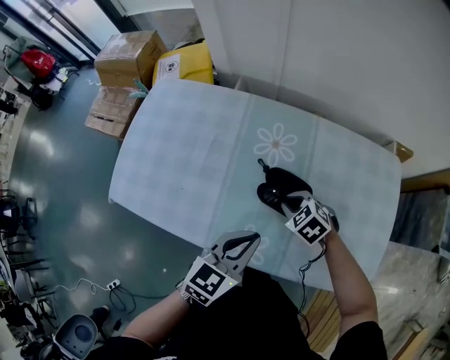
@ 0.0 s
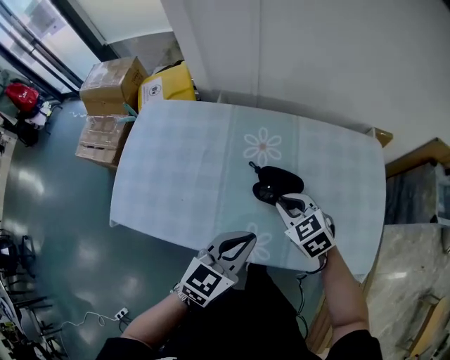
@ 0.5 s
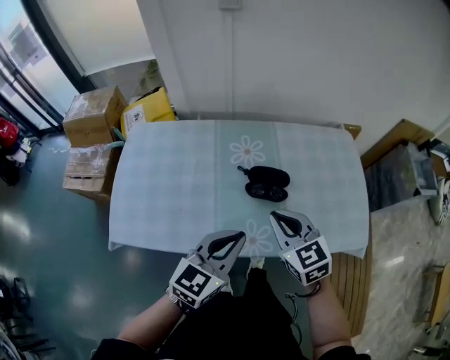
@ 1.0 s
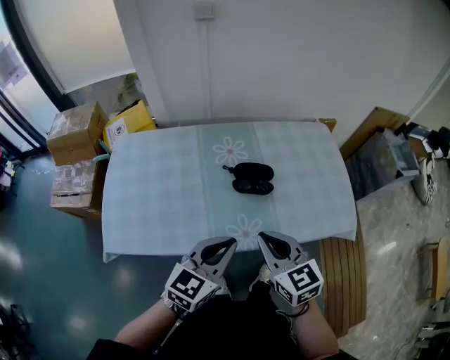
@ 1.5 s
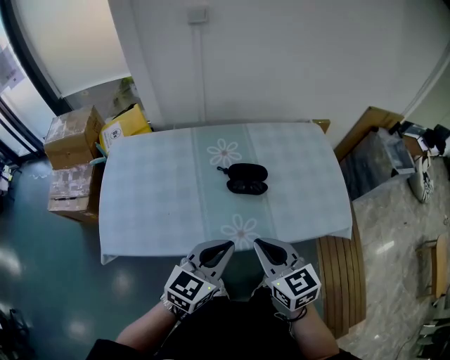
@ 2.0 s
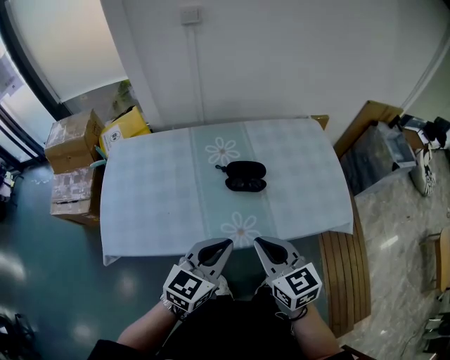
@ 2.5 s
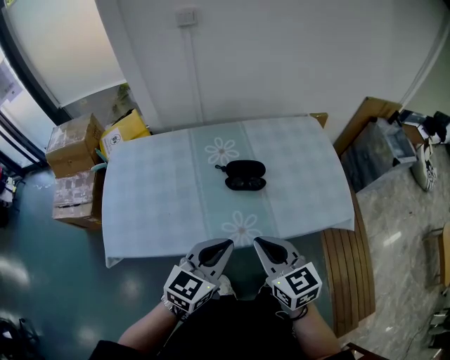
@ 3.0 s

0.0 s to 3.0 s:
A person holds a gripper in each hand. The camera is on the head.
0.0 to 1.5 s: The left gripper ends up some 15 cm from where it was, and turns by approximately 20 degrees, while the right gripper heads upward, covering approximately 20 cm, and tips its fingers upward by some 40 degrees.
1.5 to 3.0 s: There are only small adjustments of the grippers.

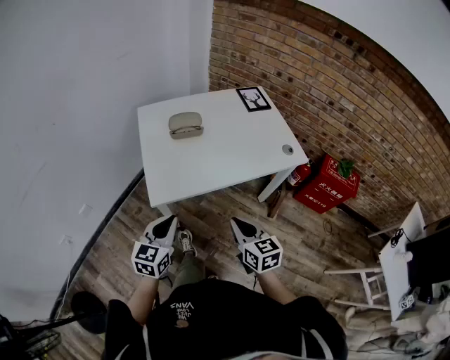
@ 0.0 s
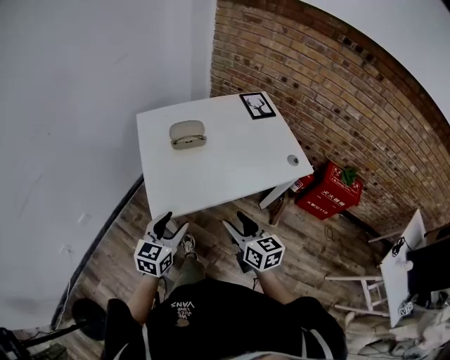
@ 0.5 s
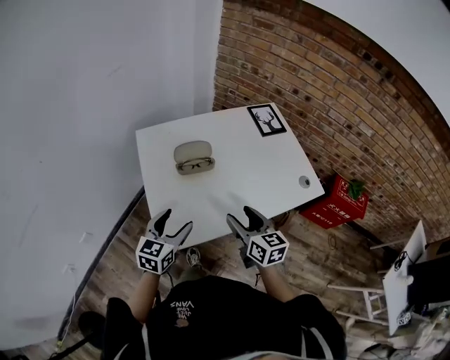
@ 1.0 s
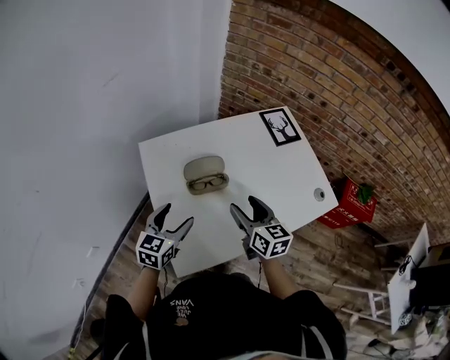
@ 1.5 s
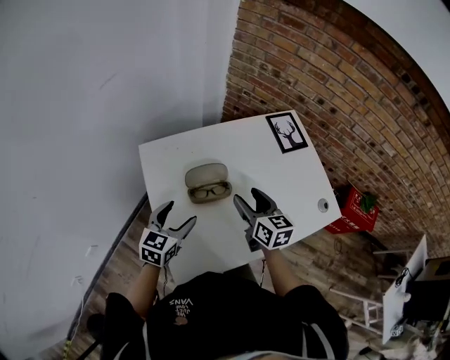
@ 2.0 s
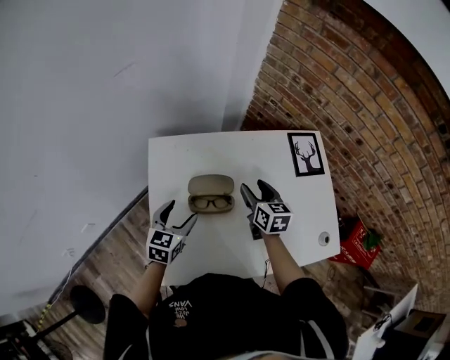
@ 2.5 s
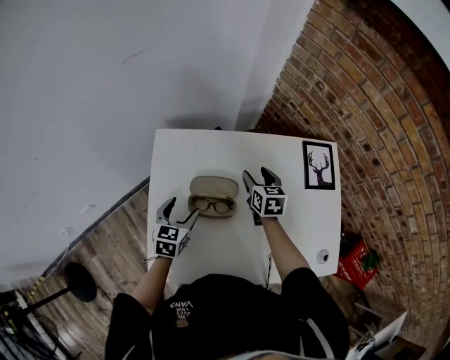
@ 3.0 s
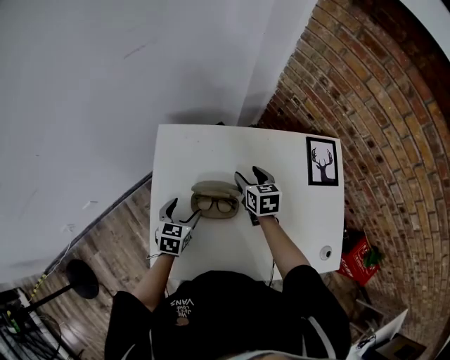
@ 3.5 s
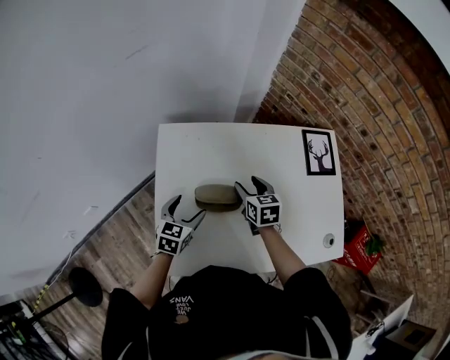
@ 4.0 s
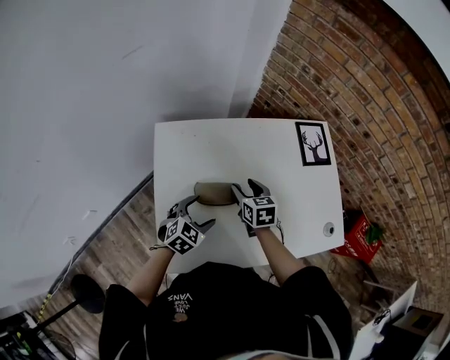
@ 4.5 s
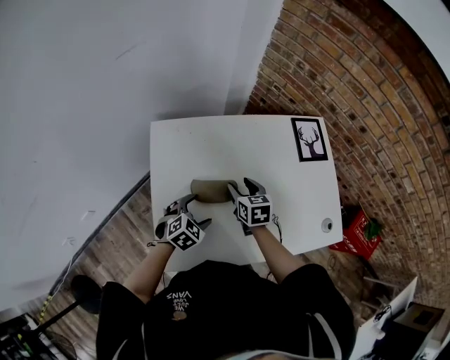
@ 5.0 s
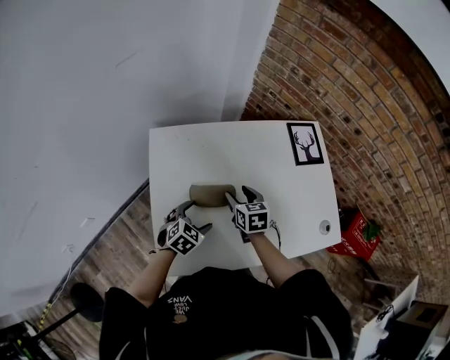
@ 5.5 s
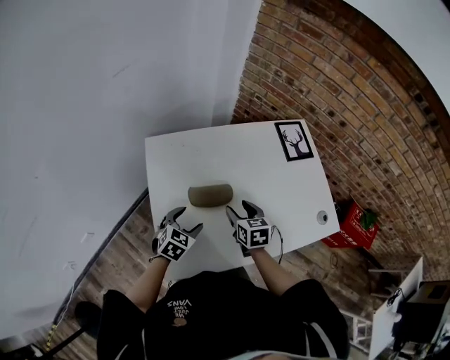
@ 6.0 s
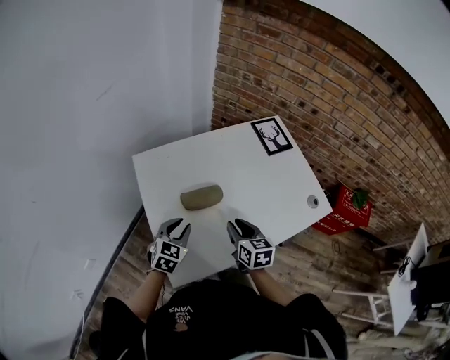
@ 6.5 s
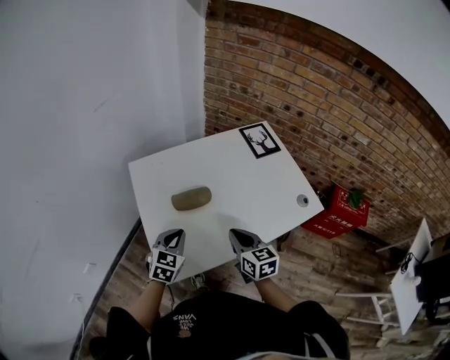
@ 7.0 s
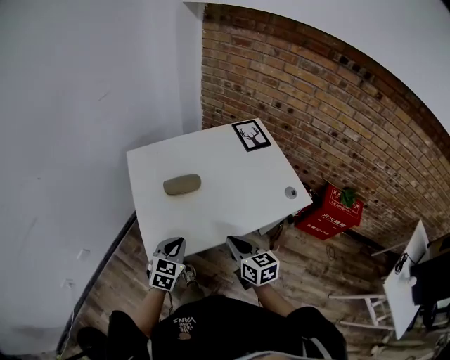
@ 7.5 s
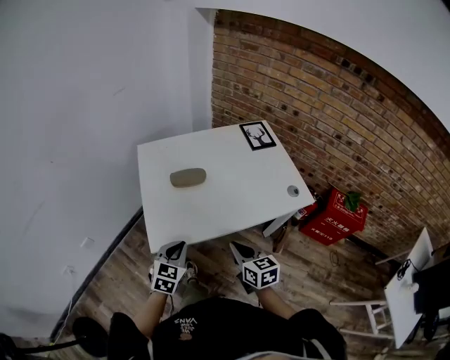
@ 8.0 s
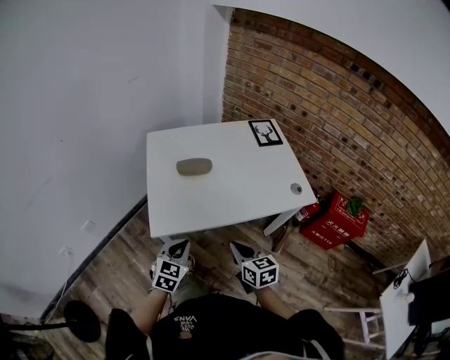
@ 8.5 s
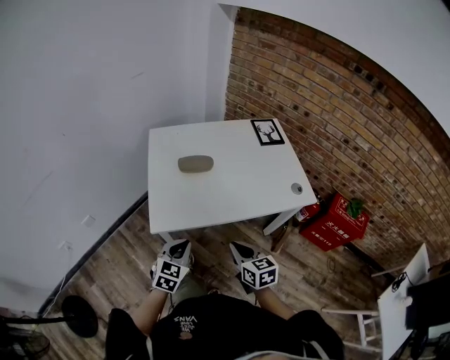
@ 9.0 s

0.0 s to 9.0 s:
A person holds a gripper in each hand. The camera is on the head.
0.0 to 2.0 s: The grippers both shift forward by about 40 cm. The right gripper opens its fingers; the left gripper opens up.
2.0 to 4.5 s: The left gripper travels downward and to the right by some 10 cm, and rotates some 20 degrees; the right gripper shifts roughly 15 cm downward and forward, and rotates some 20 degrees.
4.5 to 7.0 s: The left gripper heads backward and upward, covering about 10 cm, and closes, while the right gripper moves backward and upward, some 25 cm, rotates about 20 degrees, and closes.
7.0 to 9.0 s: Both grippers travel together backward, about 20 cm.

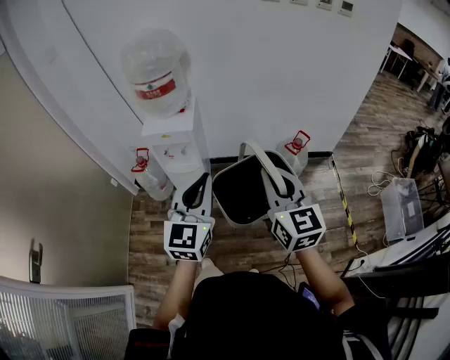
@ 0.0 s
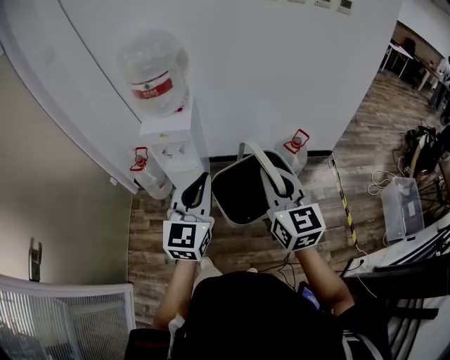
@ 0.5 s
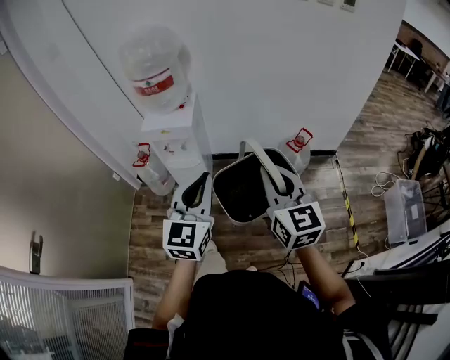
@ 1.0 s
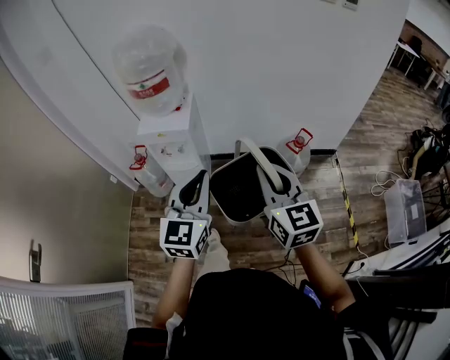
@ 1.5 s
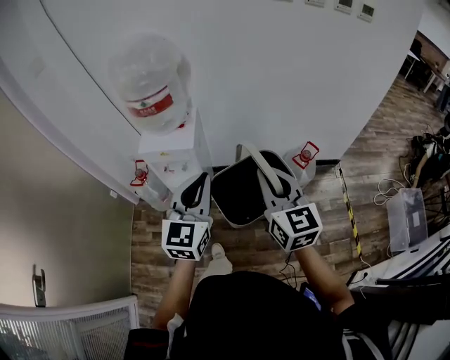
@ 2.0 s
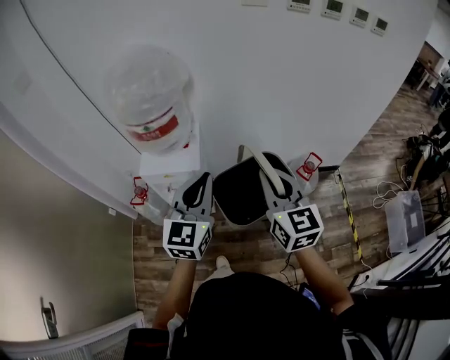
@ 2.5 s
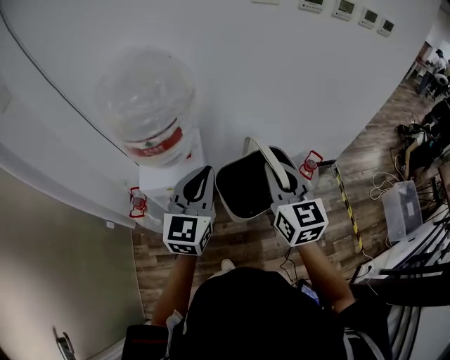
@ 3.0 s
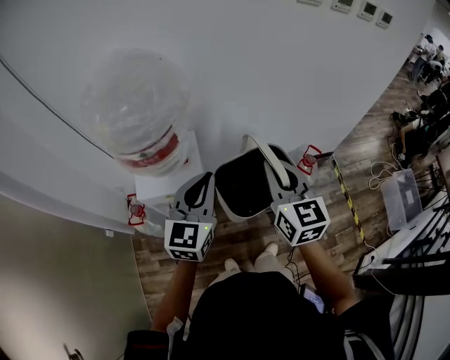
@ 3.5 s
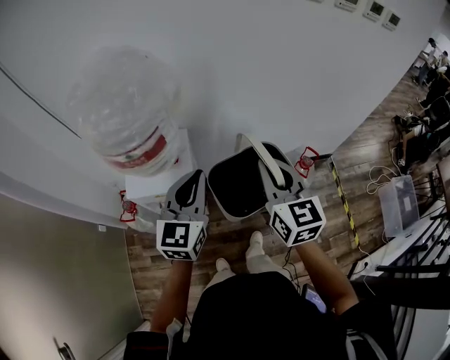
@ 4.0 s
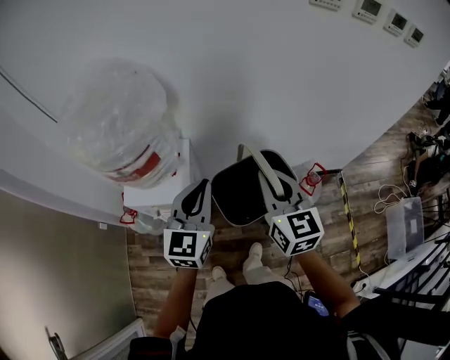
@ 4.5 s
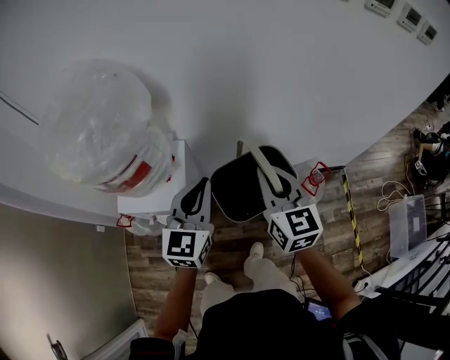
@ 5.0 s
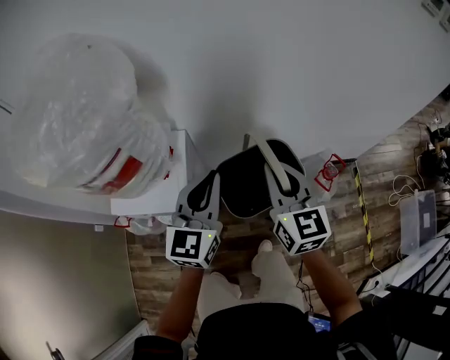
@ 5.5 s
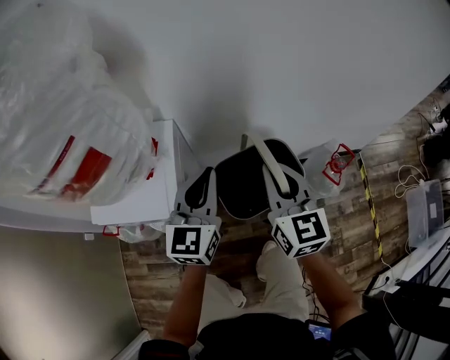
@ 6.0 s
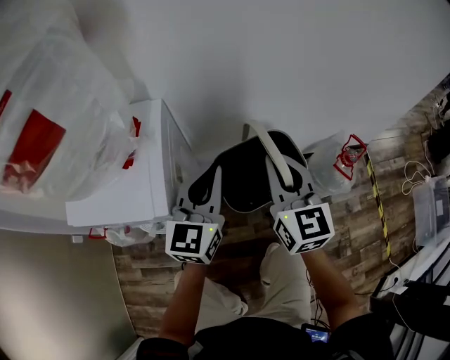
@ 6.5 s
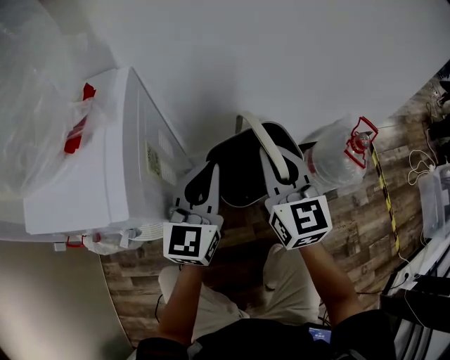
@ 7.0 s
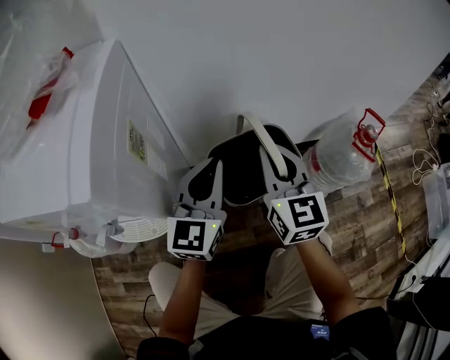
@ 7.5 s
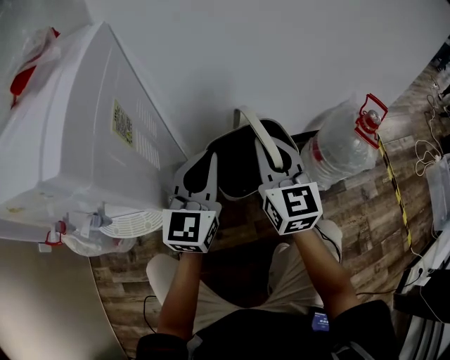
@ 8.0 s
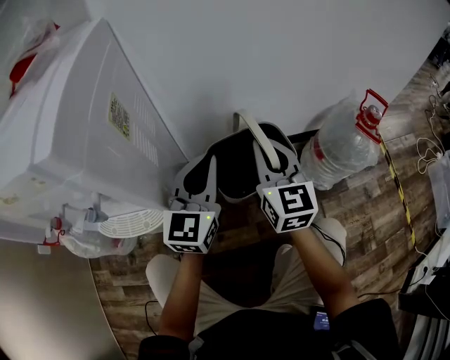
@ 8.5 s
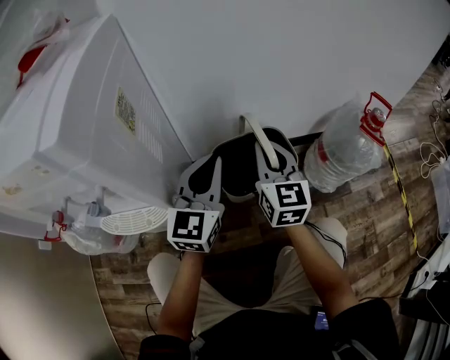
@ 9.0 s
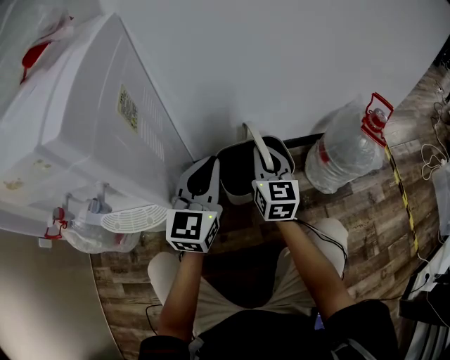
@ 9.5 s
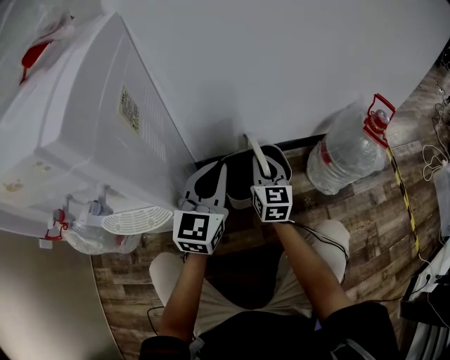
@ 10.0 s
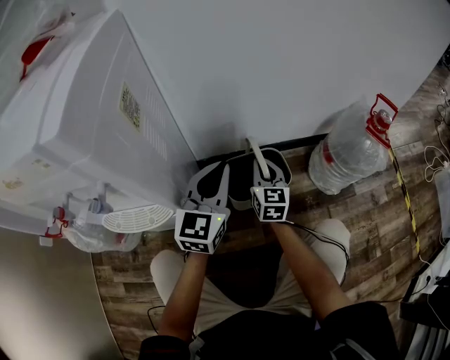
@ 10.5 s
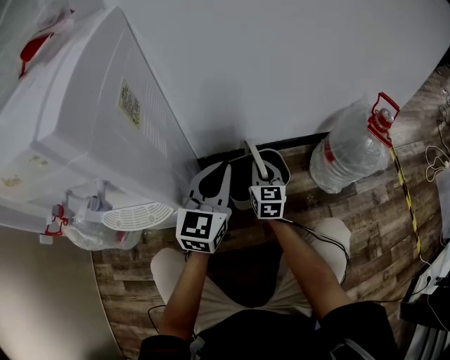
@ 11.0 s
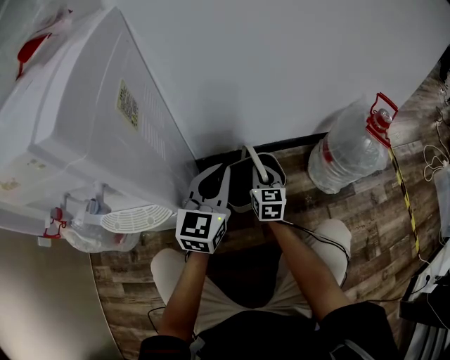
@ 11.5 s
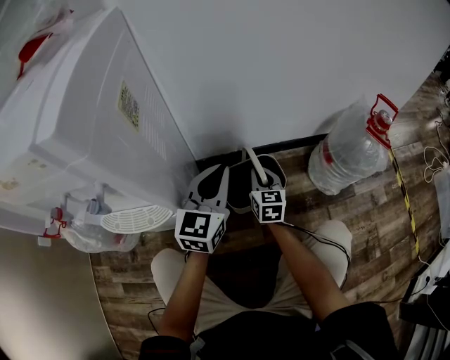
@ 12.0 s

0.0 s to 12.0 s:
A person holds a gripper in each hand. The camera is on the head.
0.0 to 2.0 s: The grippers both shift forward by approximately 15 cm.
2.0 to 4.0 s: The grippers both shift forward by about 20 cm.
4.0 to 6.0 s: Both grippers move downward and forward, approximately 25 cm.
6.0 to 8.0 s: The two grippers go roughly 30 cm downward.
8.0 to 10.0 s: The left gripper heads downward, covering roughly 5 cm, while the right gripper moves downward, about 20 cm.
10.0 to 12.0 s: The right gripper shifts some 10 cm downward.

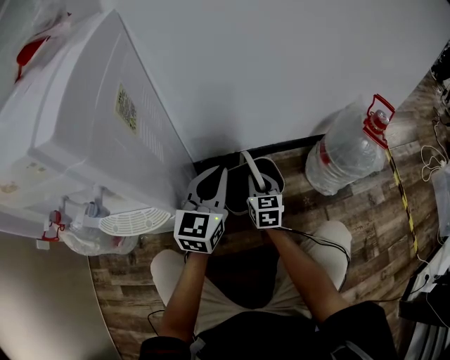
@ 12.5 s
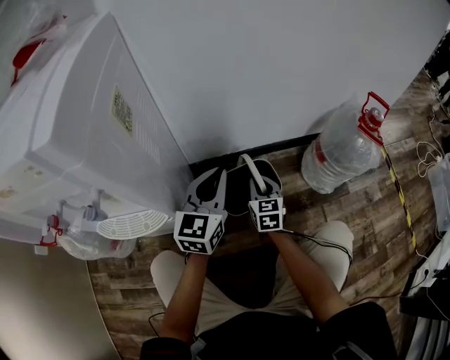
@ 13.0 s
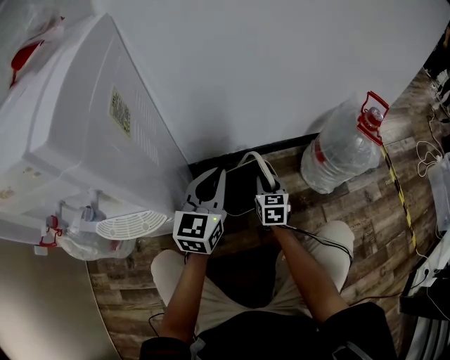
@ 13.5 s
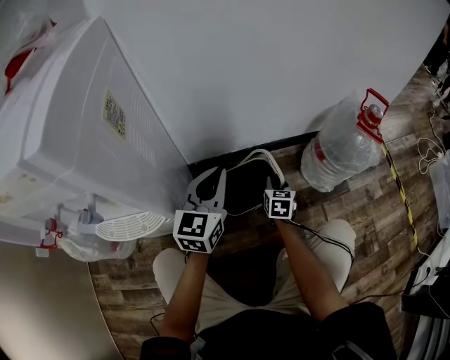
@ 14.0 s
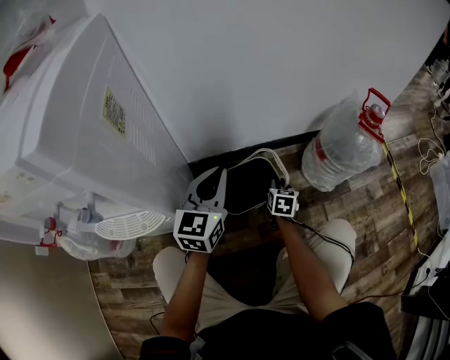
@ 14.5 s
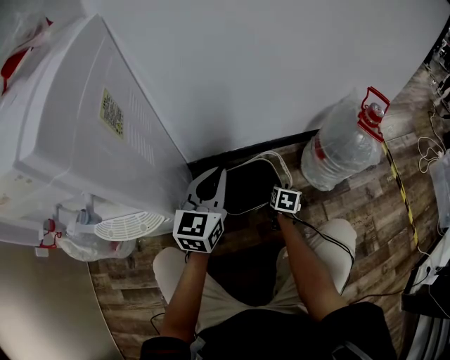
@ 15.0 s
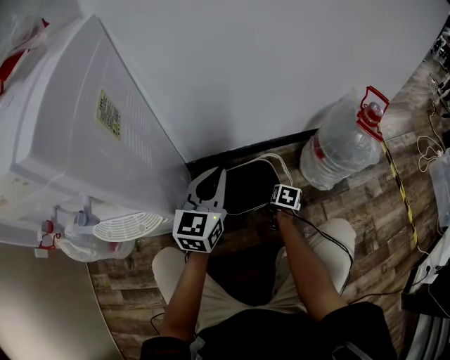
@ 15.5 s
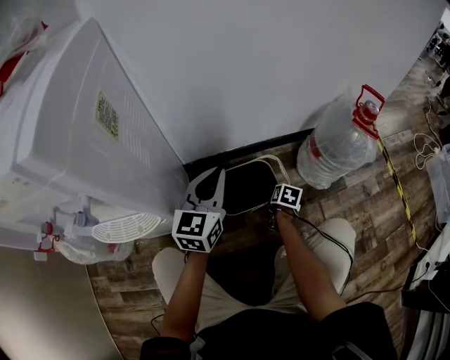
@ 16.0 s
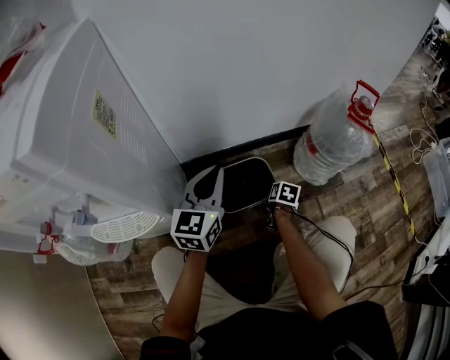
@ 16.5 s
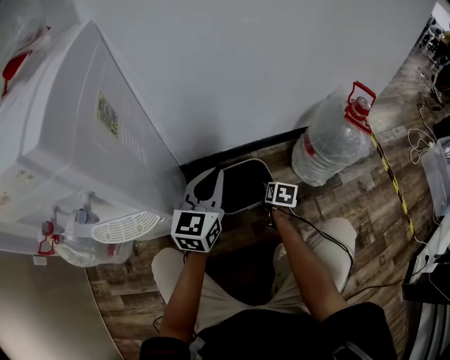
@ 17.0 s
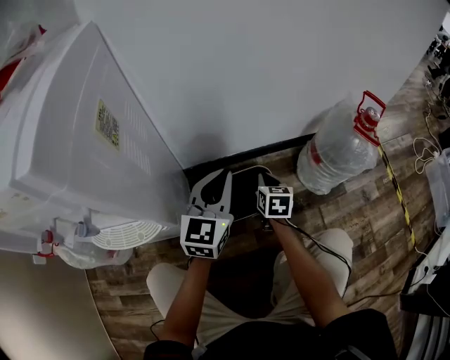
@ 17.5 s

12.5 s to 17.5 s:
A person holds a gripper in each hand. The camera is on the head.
12.5 to 15.0 s: The right gripper travels to the right and downward by some 20 cm, swivels about 40 degrees, and opens.
15.0 to 17.5 s: The right gripper shifts roughly 15 cm upward and to the left, and closes up.
